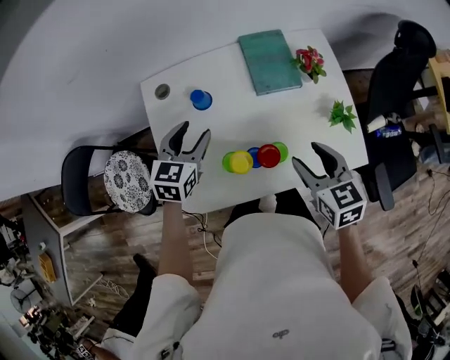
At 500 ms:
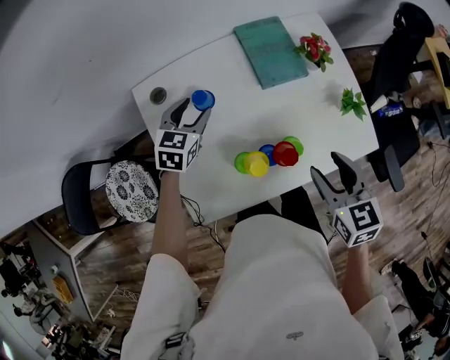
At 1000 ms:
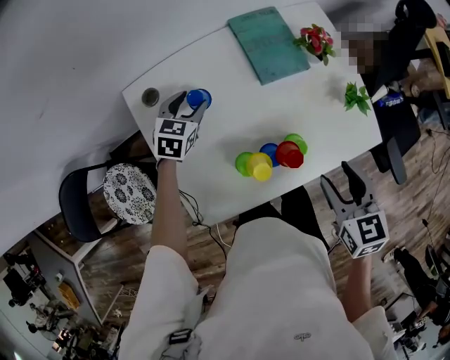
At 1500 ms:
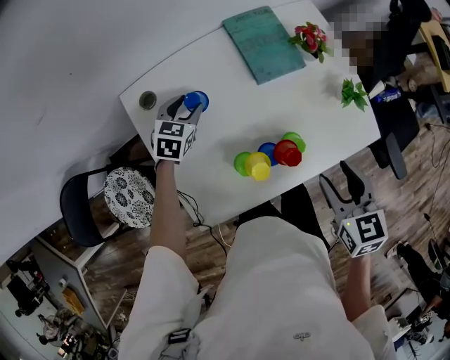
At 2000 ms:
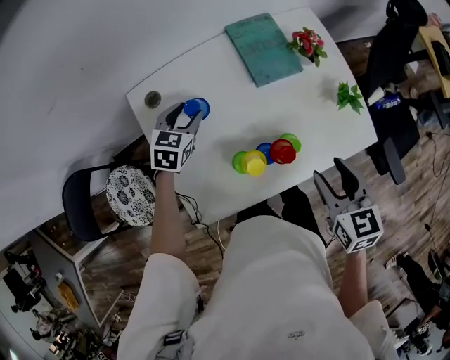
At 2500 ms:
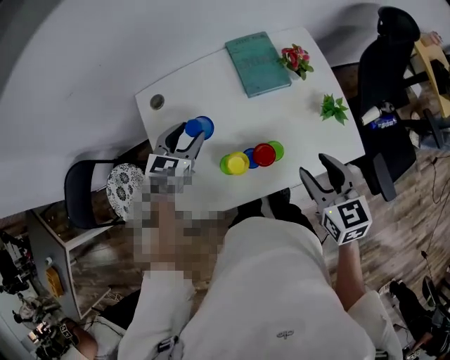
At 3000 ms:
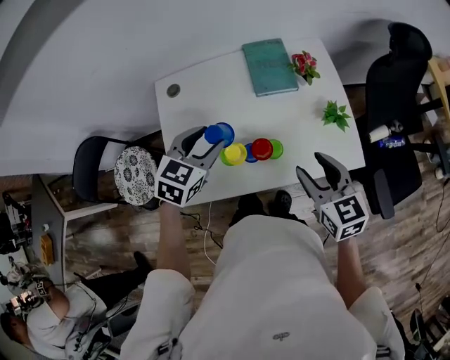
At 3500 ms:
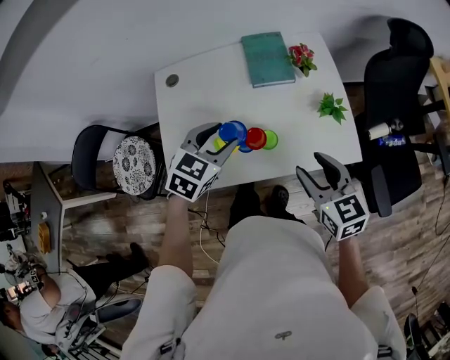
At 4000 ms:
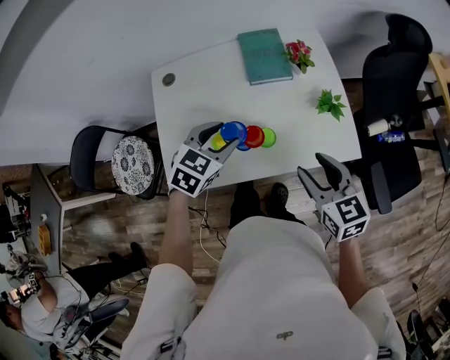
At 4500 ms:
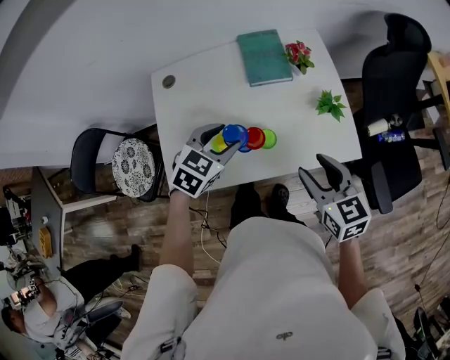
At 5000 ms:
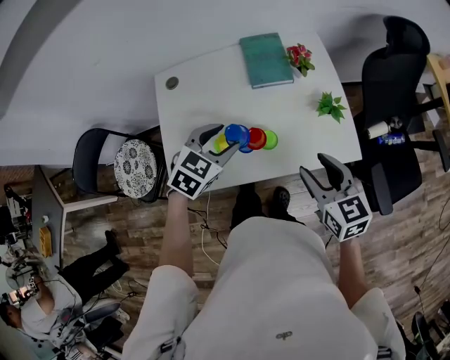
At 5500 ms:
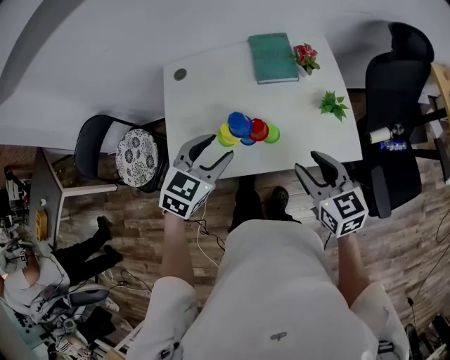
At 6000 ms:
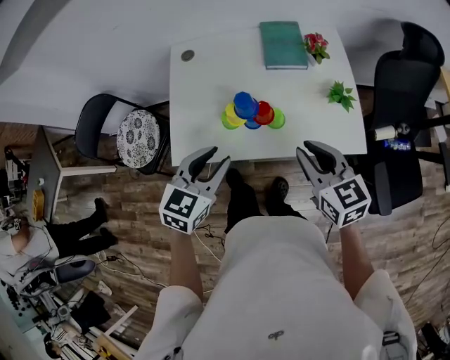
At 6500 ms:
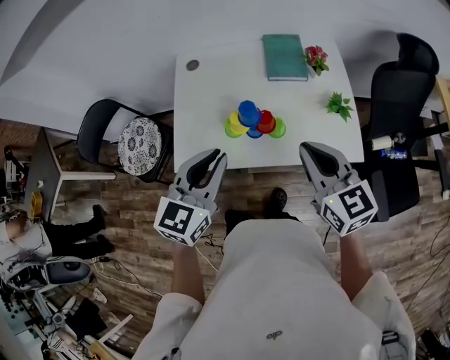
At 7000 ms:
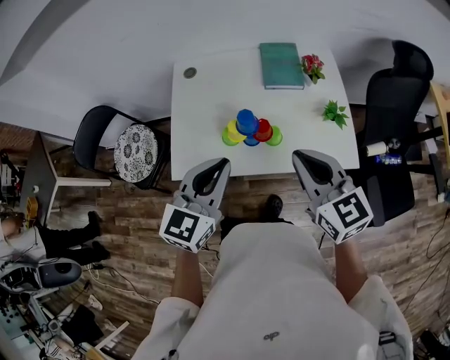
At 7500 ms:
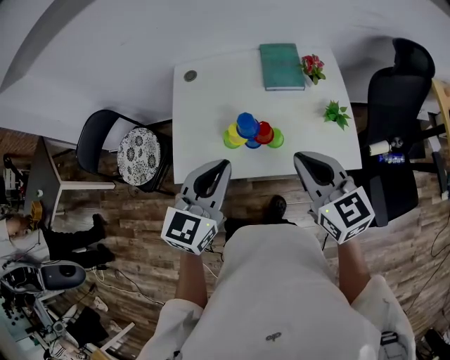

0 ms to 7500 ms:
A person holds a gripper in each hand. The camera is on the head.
0 ms to 2000 ms: The left gripper shifts about 10 cm downward and forward.
2000 ms to 4000 ms: The left gripper heads backward, to the right and upward, covering approximately 25 cm; the right gripper moves to the right, roughly 5 cm, and swivels approximately 20 degrees.
4000 ms to 5500 ms: The left gripper shifts approximately 10 cm backward.
5500 ms to 7500 ms: The left gripper travels upward and backward by about 10 cm, swivels about 30 degrees, and closes; the right gripper travels upward by approximately 10 cm, and closes up.

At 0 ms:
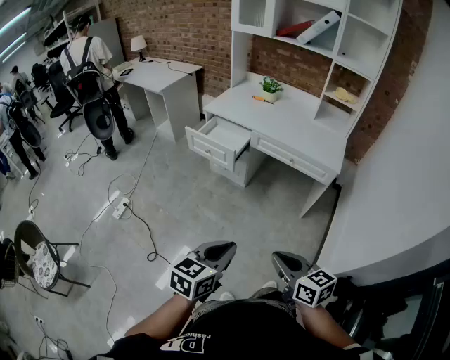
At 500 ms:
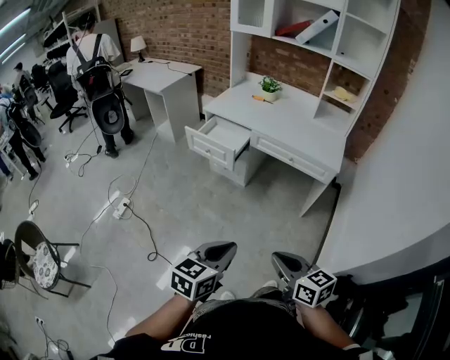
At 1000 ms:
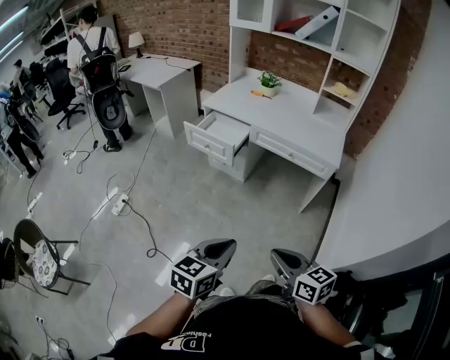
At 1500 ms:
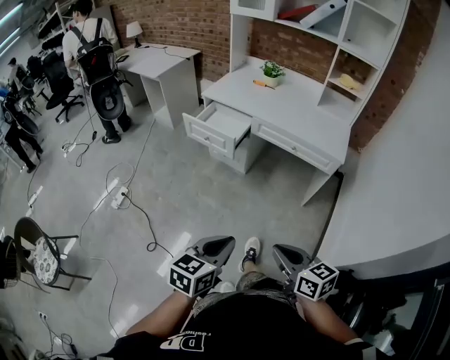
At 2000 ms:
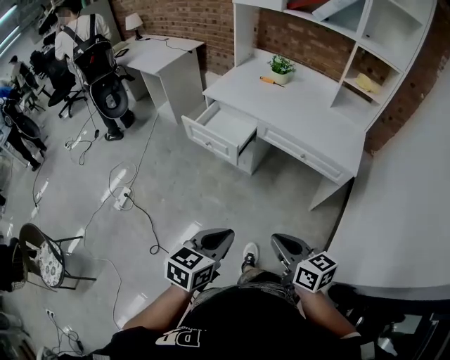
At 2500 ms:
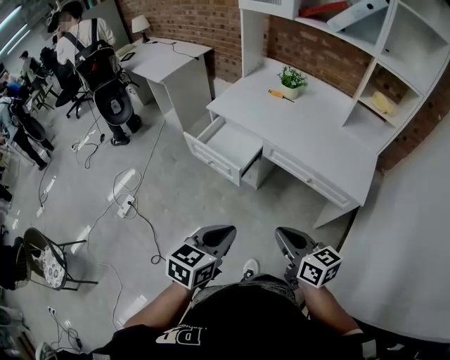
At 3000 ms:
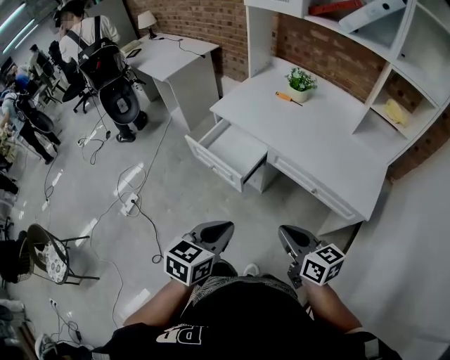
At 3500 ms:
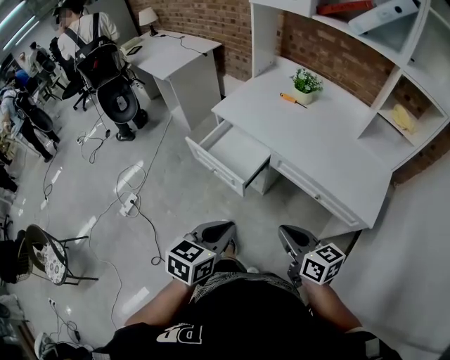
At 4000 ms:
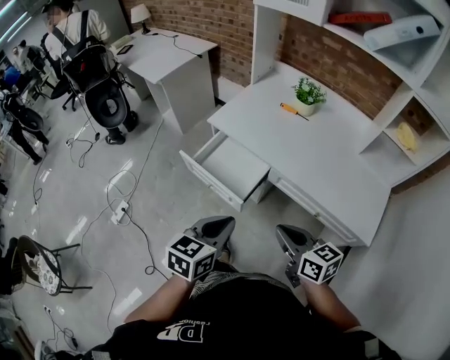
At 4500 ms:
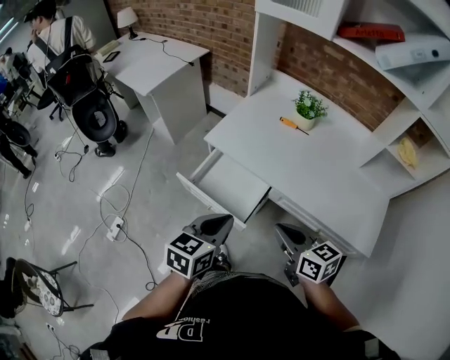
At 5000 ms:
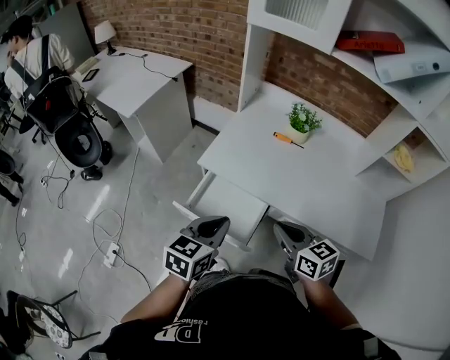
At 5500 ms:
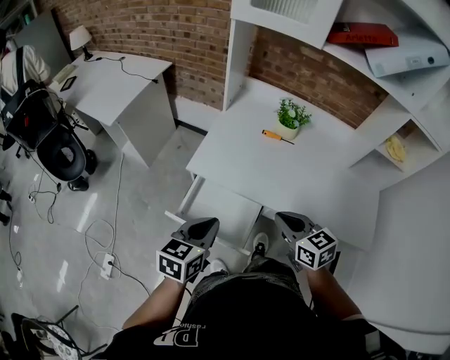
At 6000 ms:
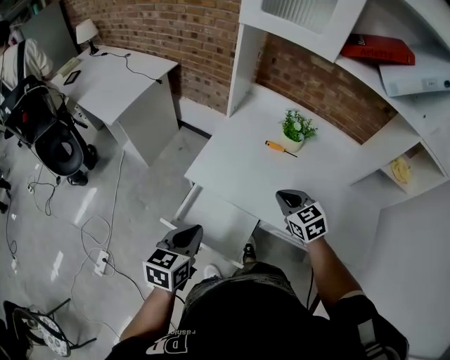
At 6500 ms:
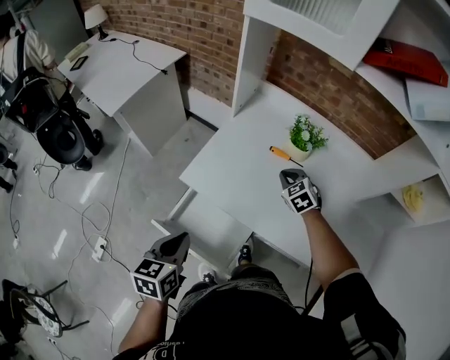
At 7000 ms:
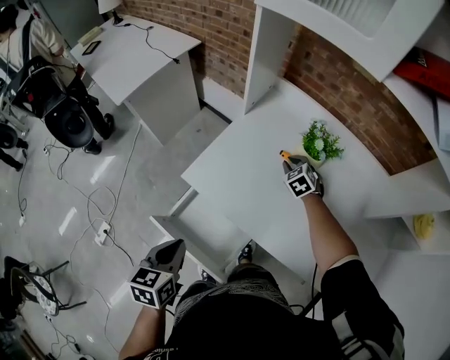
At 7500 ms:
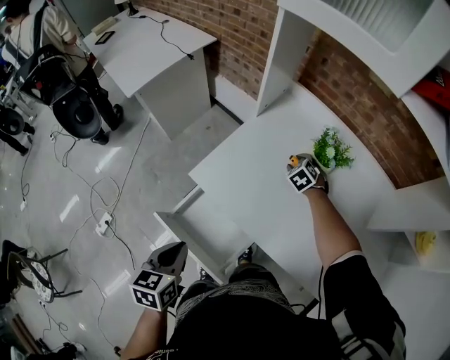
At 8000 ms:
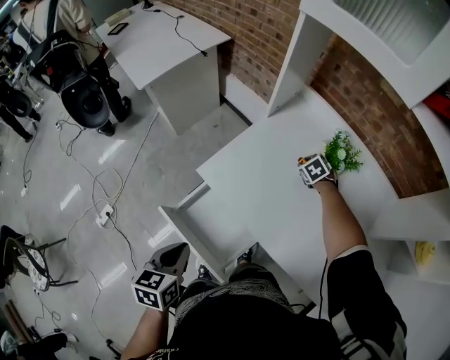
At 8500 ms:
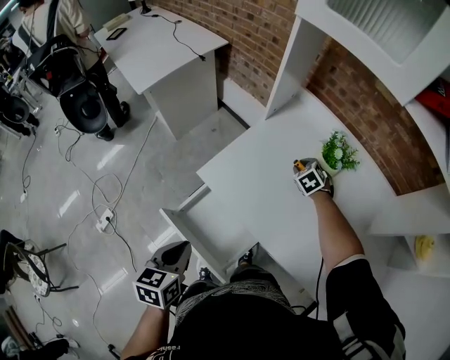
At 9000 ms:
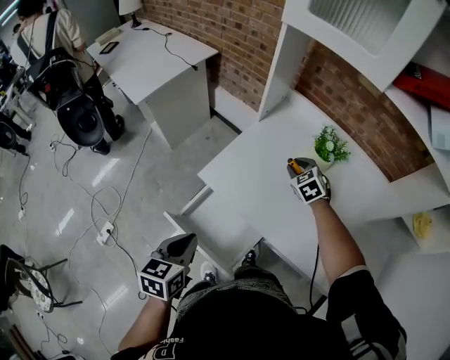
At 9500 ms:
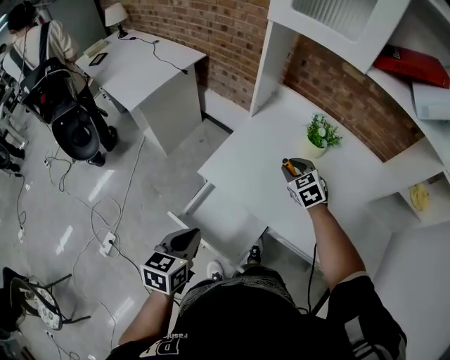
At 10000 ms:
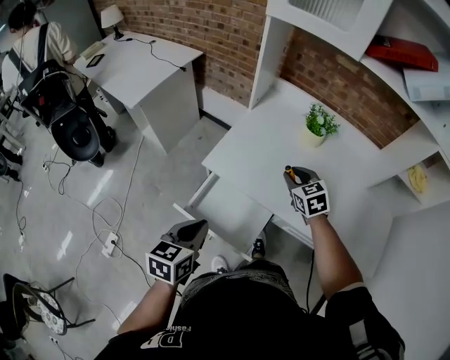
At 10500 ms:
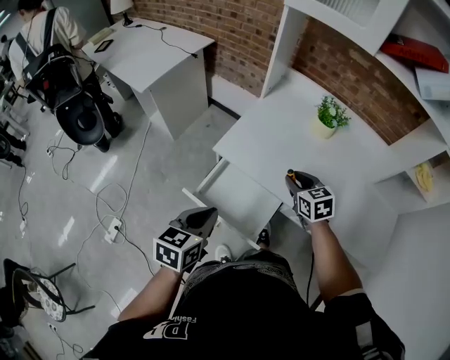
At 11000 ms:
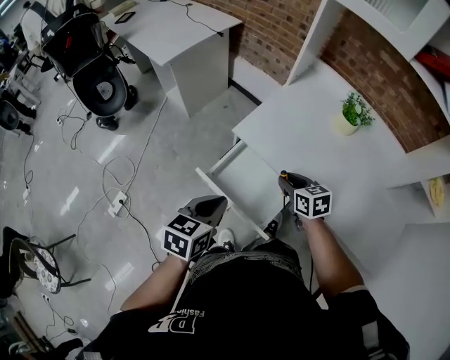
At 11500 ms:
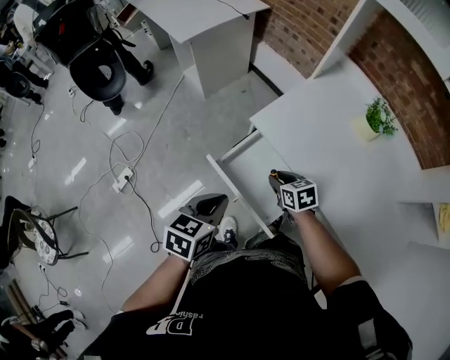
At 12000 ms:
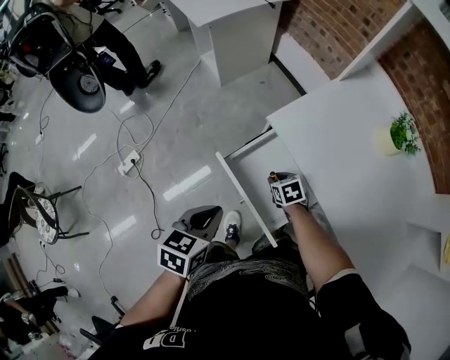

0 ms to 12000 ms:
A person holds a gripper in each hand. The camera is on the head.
0 ms to 2000 ms: Both grippers move forward, approximately 15 cm.
2000 ms to 4000 ms: The two grippers go some 35 cm forward.
4000 ms to 6000 ms: The left gripper moves forward and to the left, approximately 30 cm. The right gripper goes roughly 35 cm forward, and turns by approximately 40 degrees.
6000 ms to 8000 ms: The right gripper moves forward and downward, about 35 cm, swivels about 30 degrees, and opens its fingers; the left gripper goes roughly 5 cm downward, and rotates about 30 degrees.
8000 ms to 10000 ms: The left gripper rotates roughly 20 degrees; the right gripper heads backward and upward, covering some 30 cm, and rotates about 30 degrees.
10000 ms to 12000 ms: The left gripper travels downward by some 10 cm, and rotates roughly 20 degrees. The right gripper goes about 25 cm downward, and swivels some 40 degrees.

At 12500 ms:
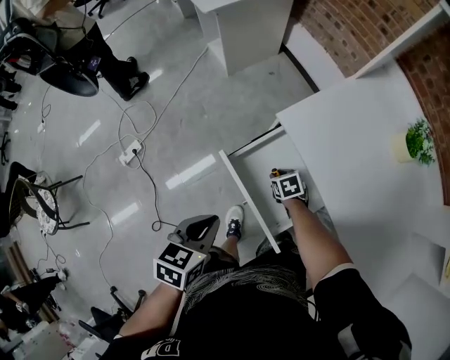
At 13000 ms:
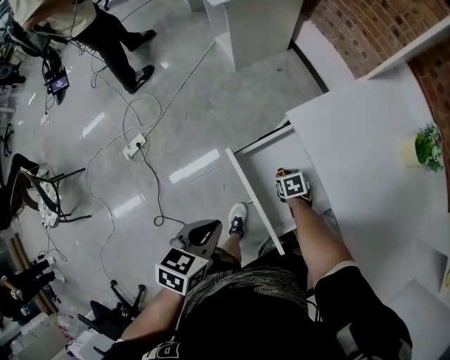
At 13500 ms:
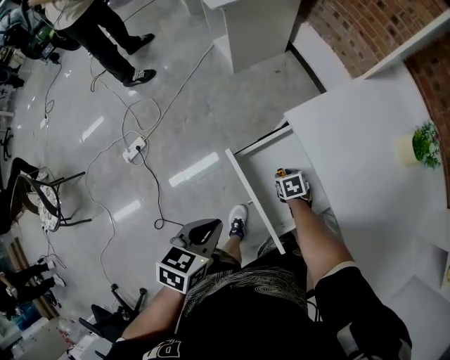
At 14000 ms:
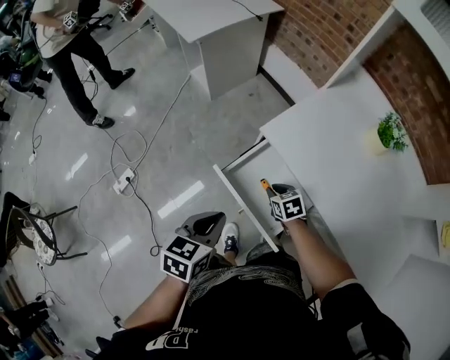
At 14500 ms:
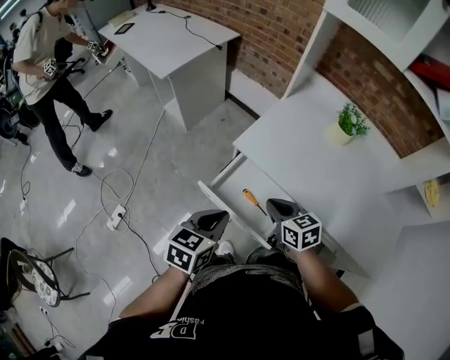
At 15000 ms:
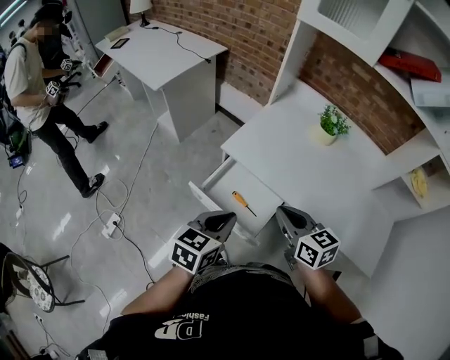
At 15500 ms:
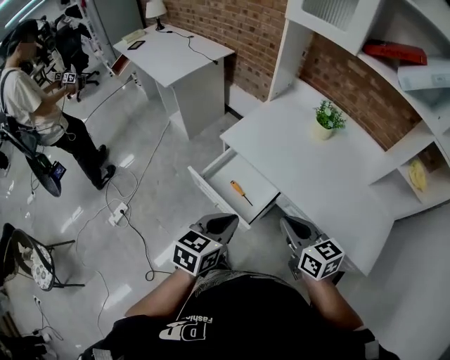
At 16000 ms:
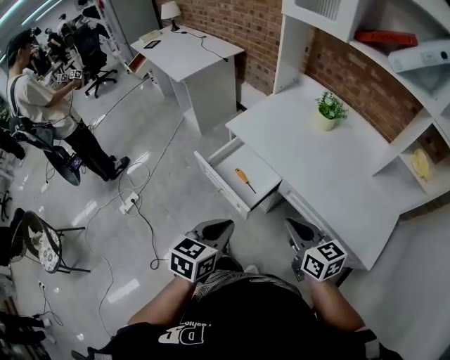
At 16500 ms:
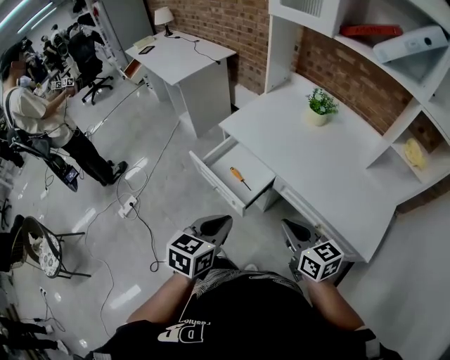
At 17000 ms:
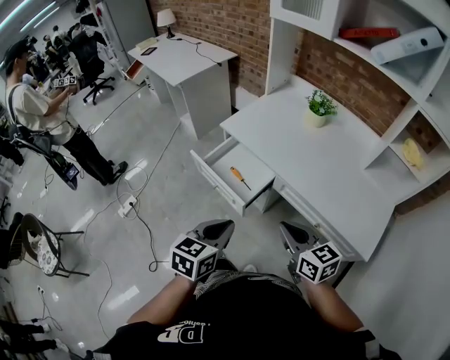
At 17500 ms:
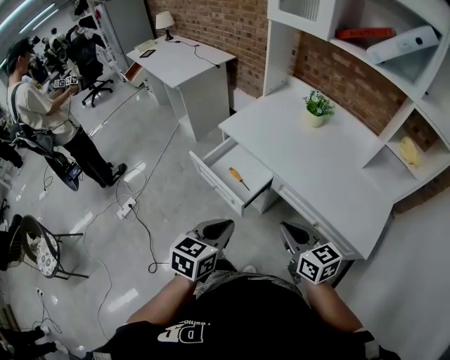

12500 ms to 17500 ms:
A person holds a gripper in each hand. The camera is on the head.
12500 ms to 15000 ms: The left gripper heads upward, covering about 15 cm, and rotates about 30 degrees; the right gripper goes about 40 cm upward, points its fingers some 50 degrees further upward, and closes its fingers.
15000 ms to 17500 ms: Both grippers travel together backward and to the right, approximately 25 cm.

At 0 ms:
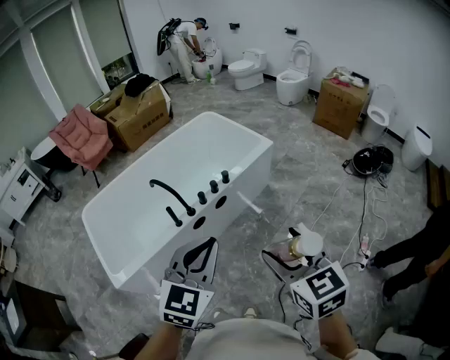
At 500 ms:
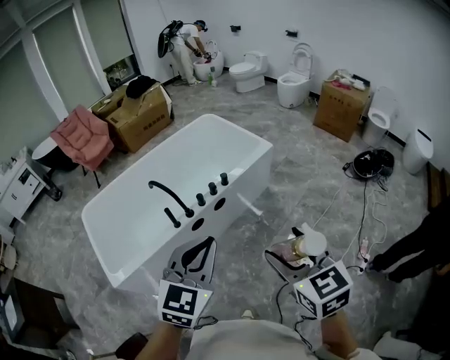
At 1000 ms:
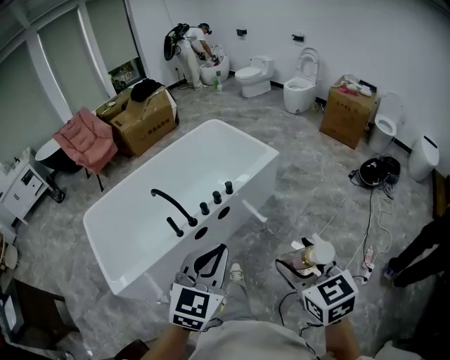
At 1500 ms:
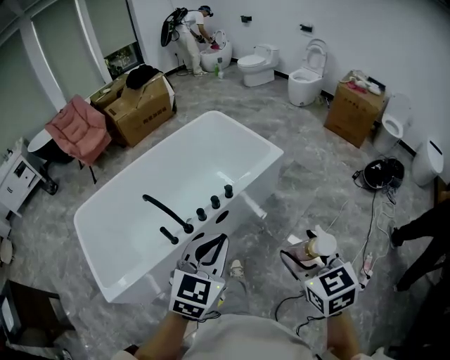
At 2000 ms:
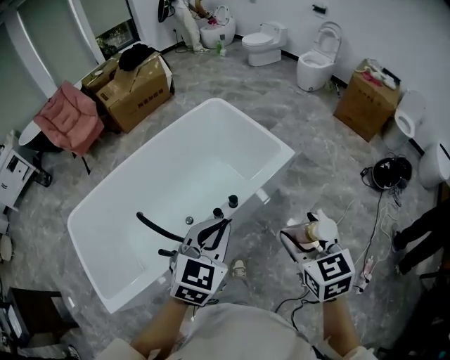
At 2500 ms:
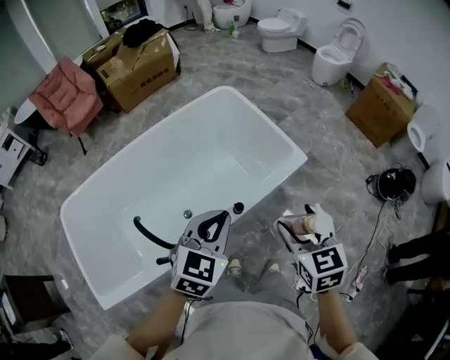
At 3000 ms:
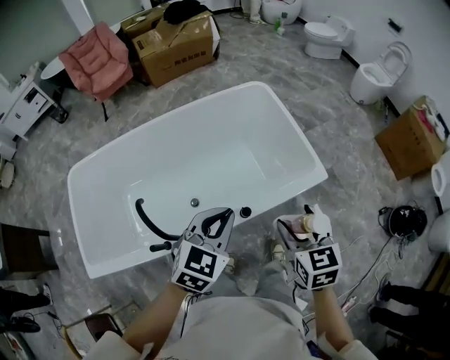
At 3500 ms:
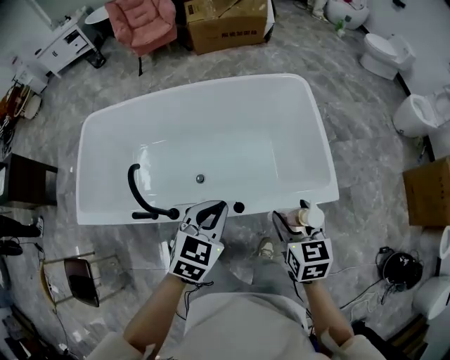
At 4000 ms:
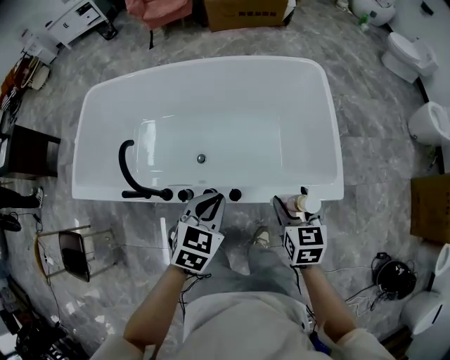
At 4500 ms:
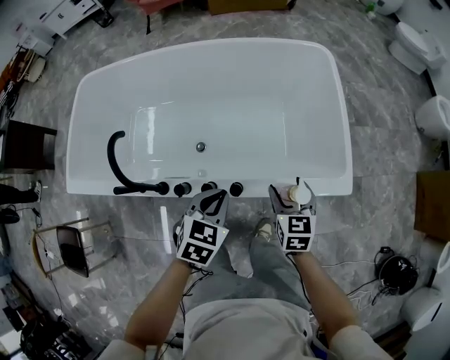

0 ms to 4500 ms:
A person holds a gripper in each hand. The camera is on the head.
0 ms to 2000 ms: Both grippers travel together forward, about 40 cm.
2000 ms to 4500 ms: Both grippers move downward, some 30 cm. The left gripper swivels about 50 degrees, while the right gripper rotates roughly 30 degrees.
